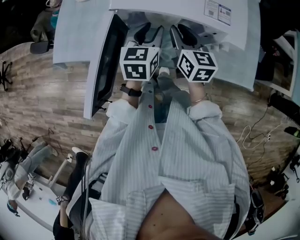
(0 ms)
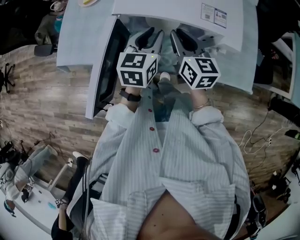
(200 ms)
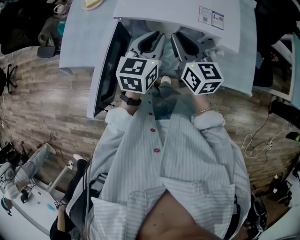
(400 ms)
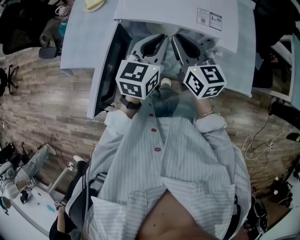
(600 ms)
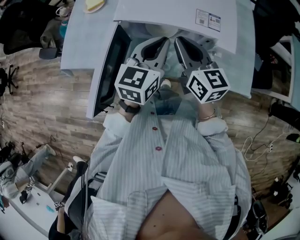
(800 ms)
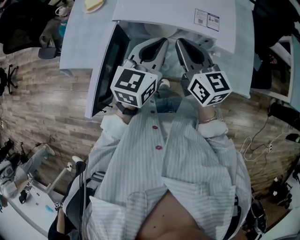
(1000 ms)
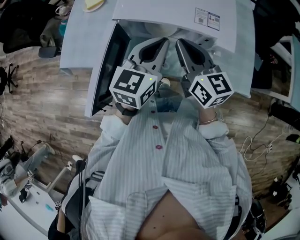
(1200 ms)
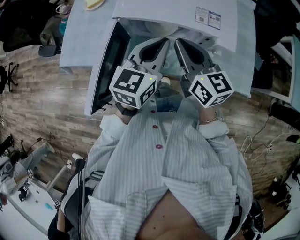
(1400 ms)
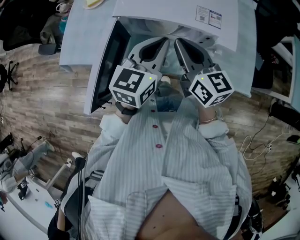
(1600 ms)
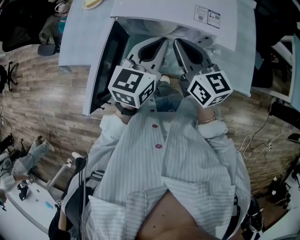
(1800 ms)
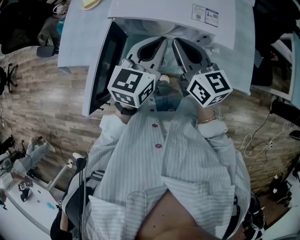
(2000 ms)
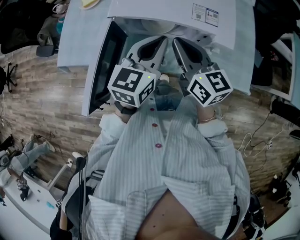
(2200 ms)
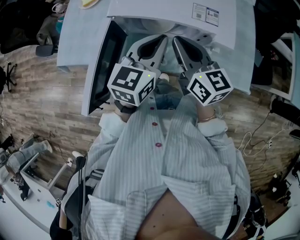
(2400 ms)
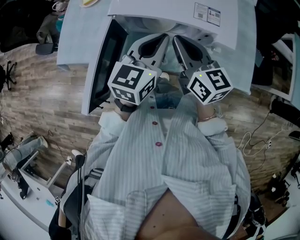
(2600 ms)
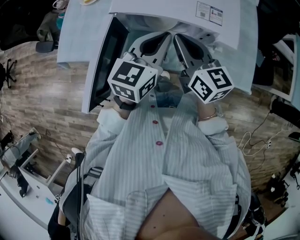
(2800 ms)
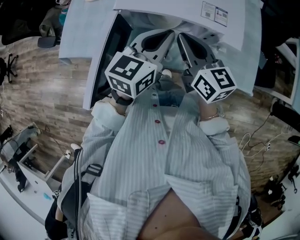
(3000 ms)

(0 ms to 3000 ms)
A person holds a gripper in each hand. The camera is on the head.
0 ms - 1600 ms: The two grippers go approximately 15 cm upward and backward. The left gripper closes.
1600 ms - 3000 ms: There are only small adjustments of the grippers.

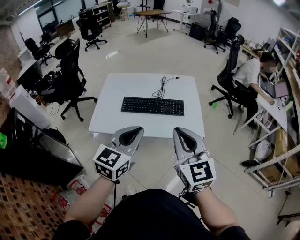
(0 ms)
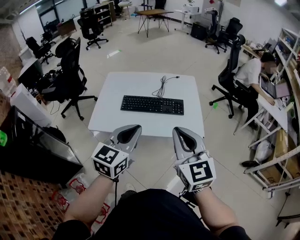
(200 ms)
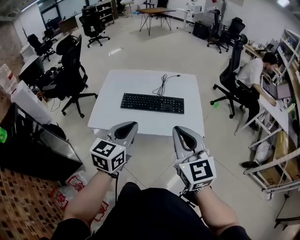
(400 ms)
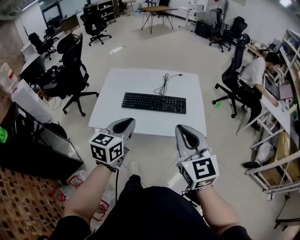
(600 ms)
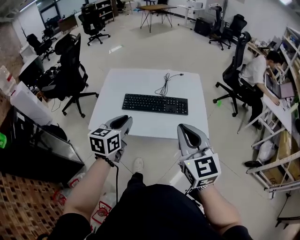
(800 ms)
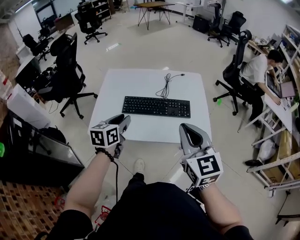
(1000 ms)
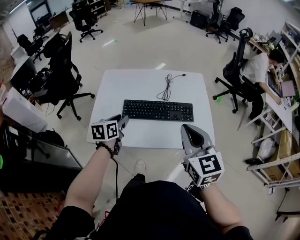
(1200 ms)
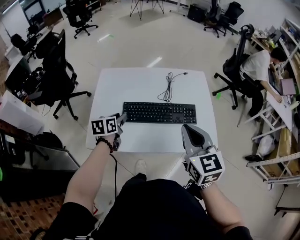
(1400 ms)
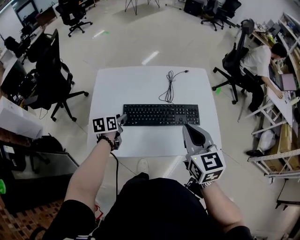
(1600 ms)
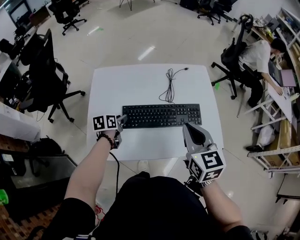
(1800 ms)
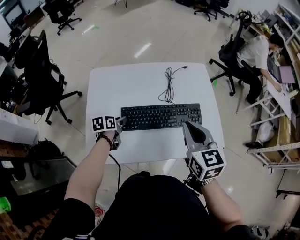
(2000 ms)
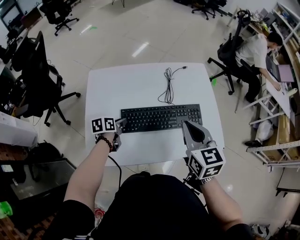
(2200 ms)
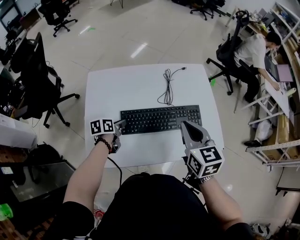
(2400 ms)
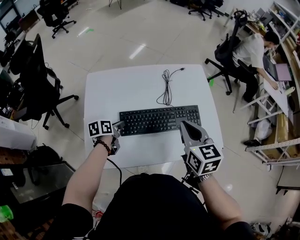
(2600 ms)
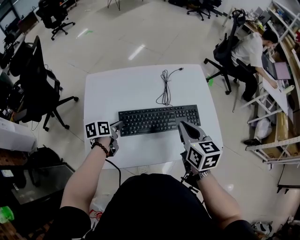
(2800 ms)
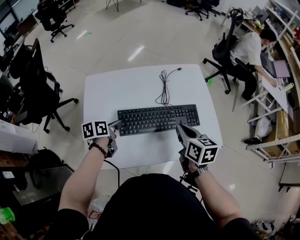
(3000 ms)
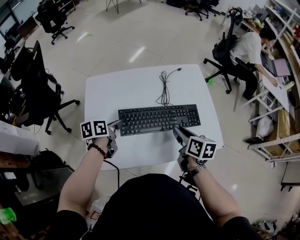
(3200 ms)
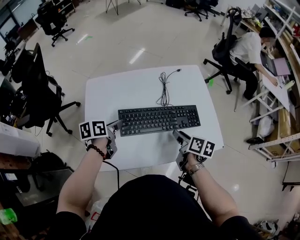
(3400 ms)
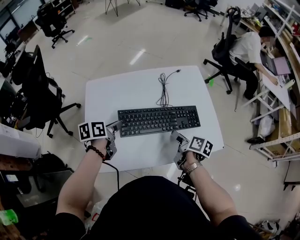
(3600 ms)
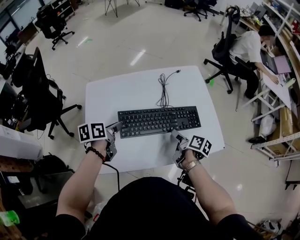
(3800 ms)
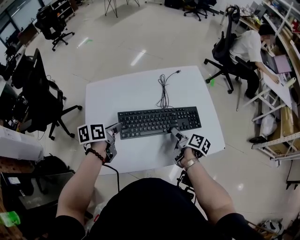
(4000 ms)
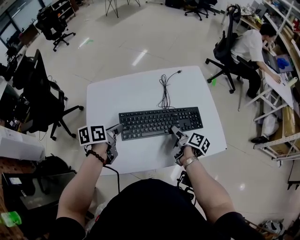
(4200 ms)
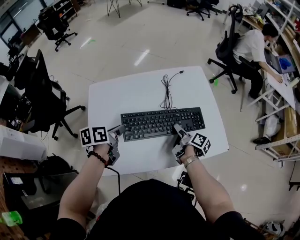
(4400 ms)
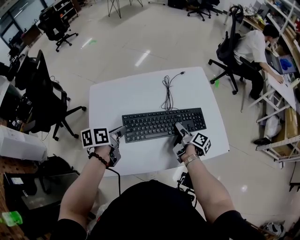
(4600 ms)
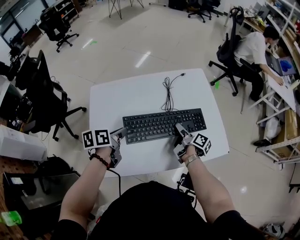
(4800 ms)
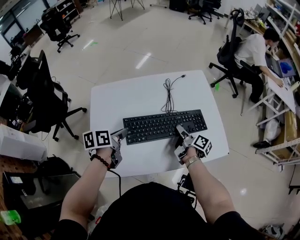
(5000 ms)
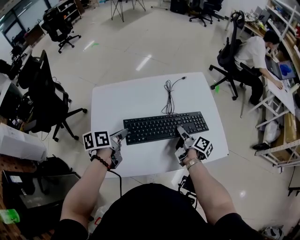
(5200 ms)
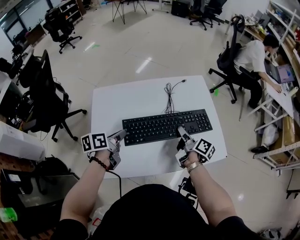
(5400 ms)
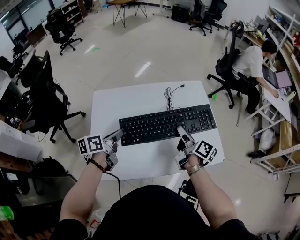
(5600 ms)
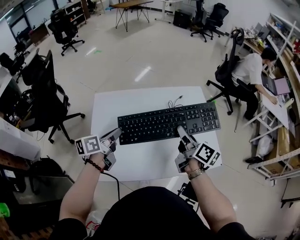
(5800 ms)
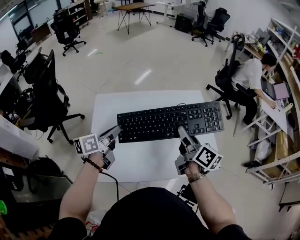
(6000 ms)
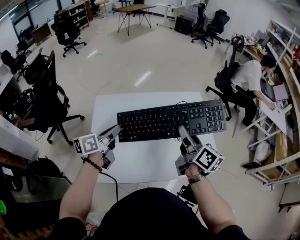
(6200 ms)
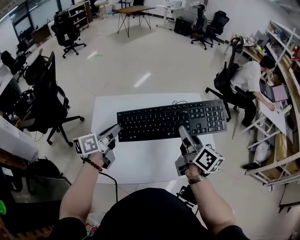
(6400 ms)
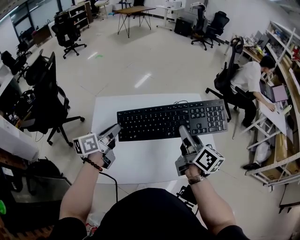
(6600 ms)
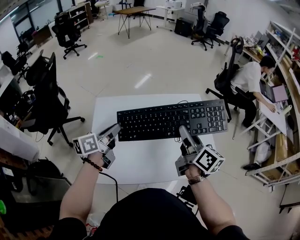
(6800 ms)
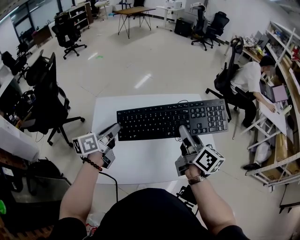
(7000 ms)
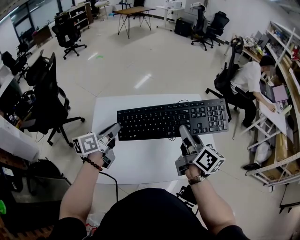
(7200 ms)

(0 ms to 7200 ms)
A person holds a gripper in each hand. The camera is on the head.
0 ms - 1400 ms: The left gripper moves forward, downward and to the left, about 40 cm, changes its angle by approximately 40 degrees, and opens up, while the right gripper heads forward and downward, covering about 20 cm.
1400 ms - 2800 ms: The right gripper is displaced forward and downward by some 15 cm, and changes its angle by some 20 degrees; the left gripper goes roughly 10 cm downward and forward, and swivels roughly 20 degrees.
2800 ms - 4400 ms: The left gripper travels upward by some 10 cm, while the right gripper is displaced downward by approximately 15 cm, twists roughly 60 degrees clockwise, seen from behind, and opens up.
4400 ms - 5800 ms: The right gripper moves upward, some 20 cm, turns by about 30 degrees, and closes; the left gripper moves upward, roughly 5 cm, and swivels some 20 degrees.
5800 ms - 7200 ms: The grippers both shift upward by approximately 5 cm.

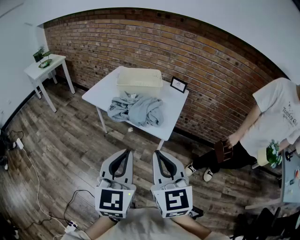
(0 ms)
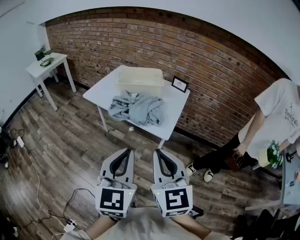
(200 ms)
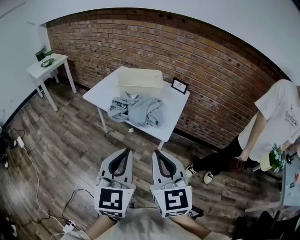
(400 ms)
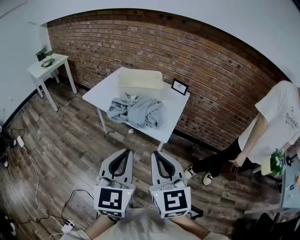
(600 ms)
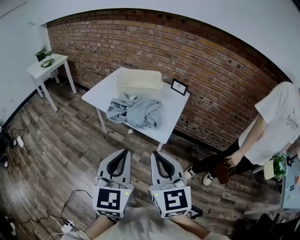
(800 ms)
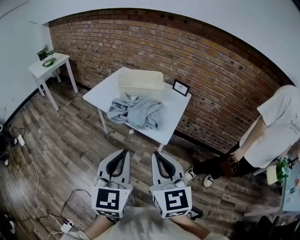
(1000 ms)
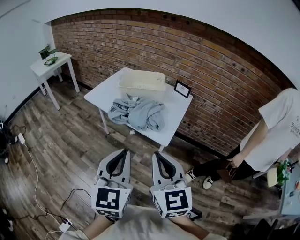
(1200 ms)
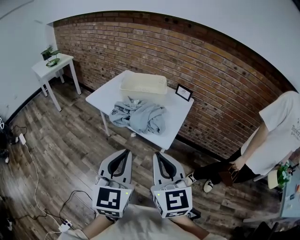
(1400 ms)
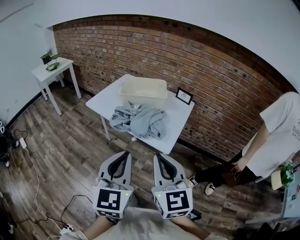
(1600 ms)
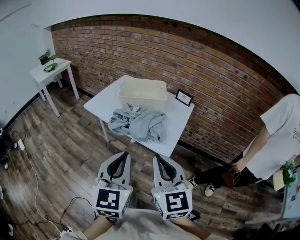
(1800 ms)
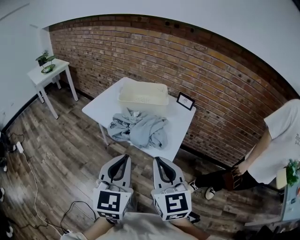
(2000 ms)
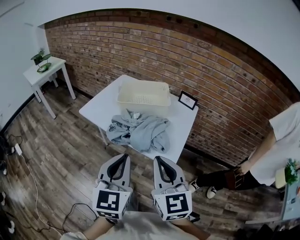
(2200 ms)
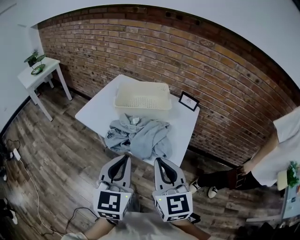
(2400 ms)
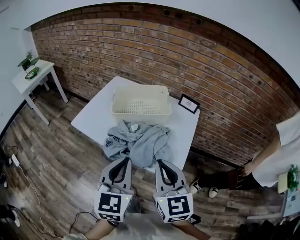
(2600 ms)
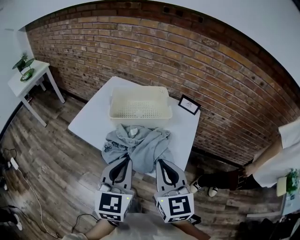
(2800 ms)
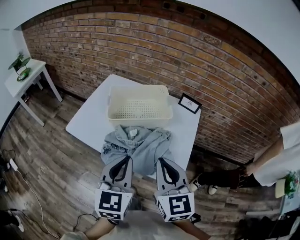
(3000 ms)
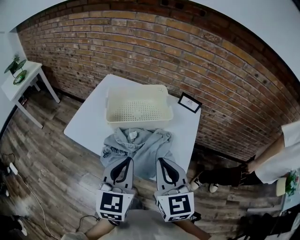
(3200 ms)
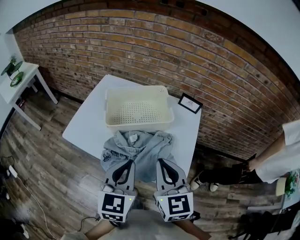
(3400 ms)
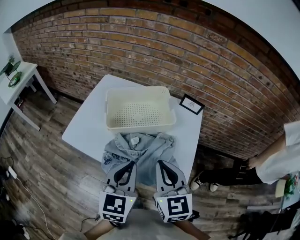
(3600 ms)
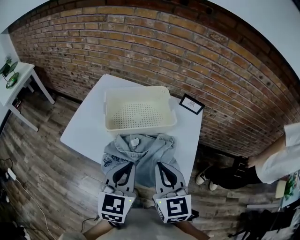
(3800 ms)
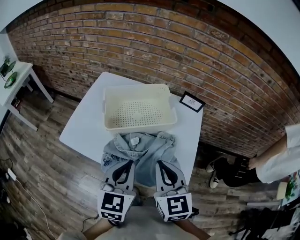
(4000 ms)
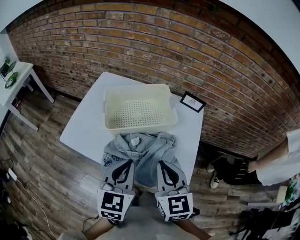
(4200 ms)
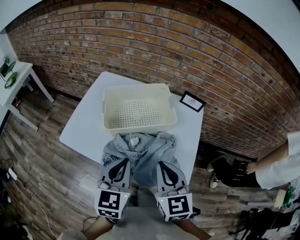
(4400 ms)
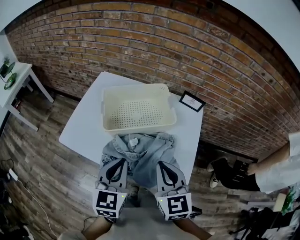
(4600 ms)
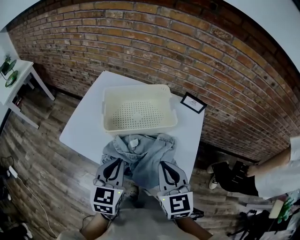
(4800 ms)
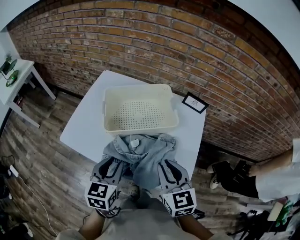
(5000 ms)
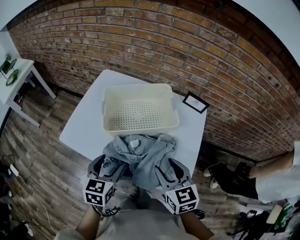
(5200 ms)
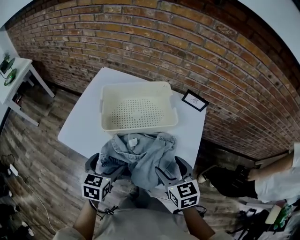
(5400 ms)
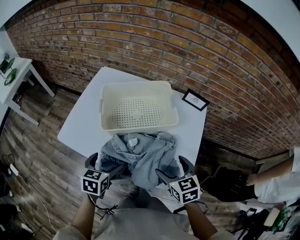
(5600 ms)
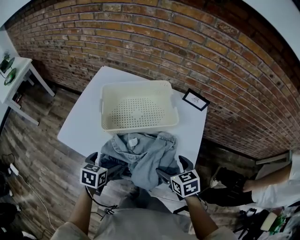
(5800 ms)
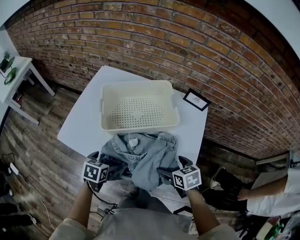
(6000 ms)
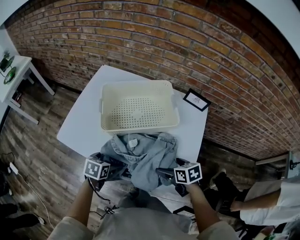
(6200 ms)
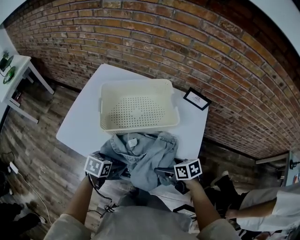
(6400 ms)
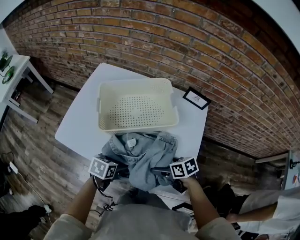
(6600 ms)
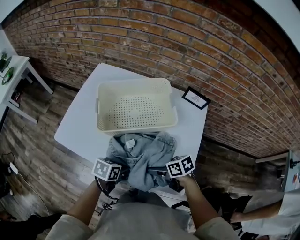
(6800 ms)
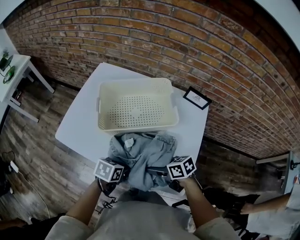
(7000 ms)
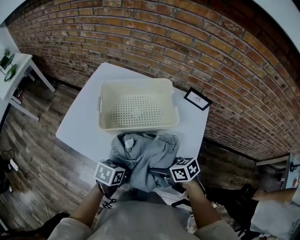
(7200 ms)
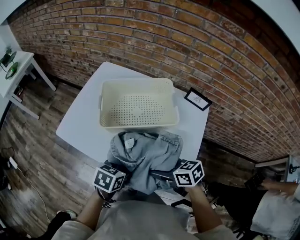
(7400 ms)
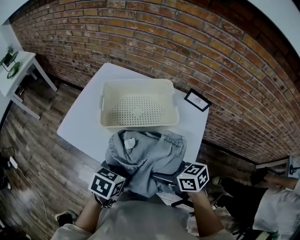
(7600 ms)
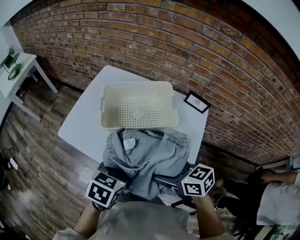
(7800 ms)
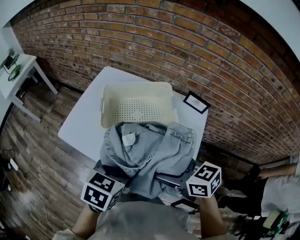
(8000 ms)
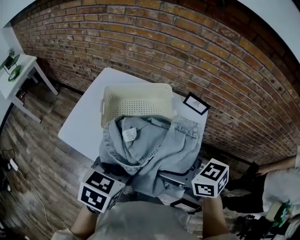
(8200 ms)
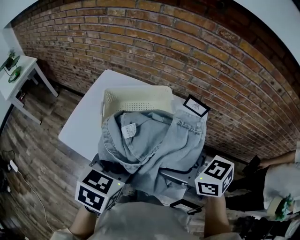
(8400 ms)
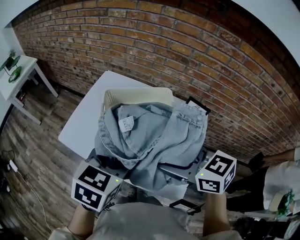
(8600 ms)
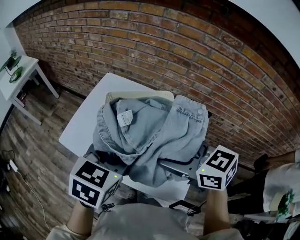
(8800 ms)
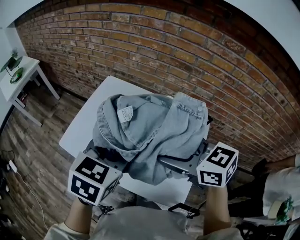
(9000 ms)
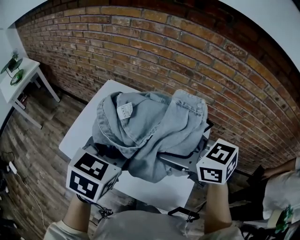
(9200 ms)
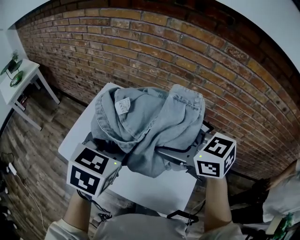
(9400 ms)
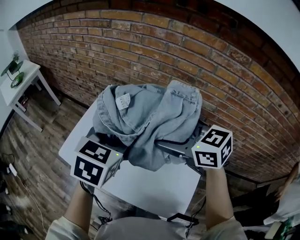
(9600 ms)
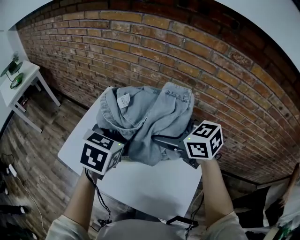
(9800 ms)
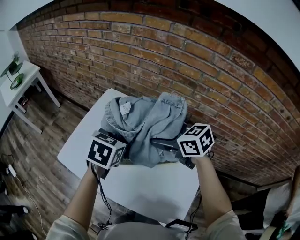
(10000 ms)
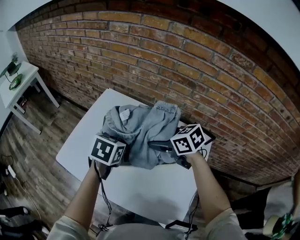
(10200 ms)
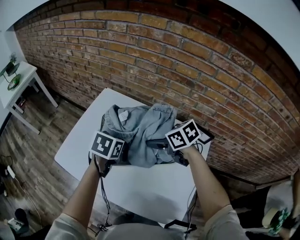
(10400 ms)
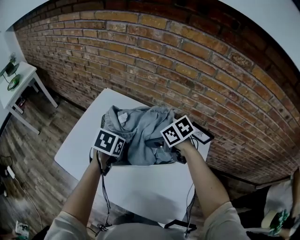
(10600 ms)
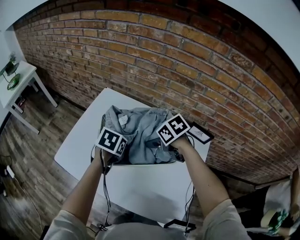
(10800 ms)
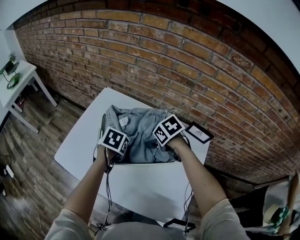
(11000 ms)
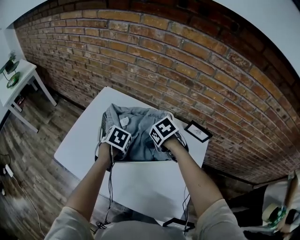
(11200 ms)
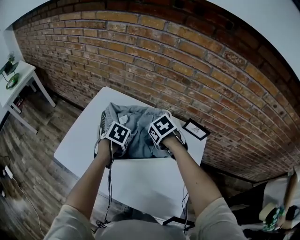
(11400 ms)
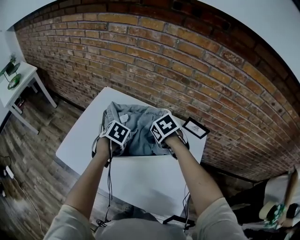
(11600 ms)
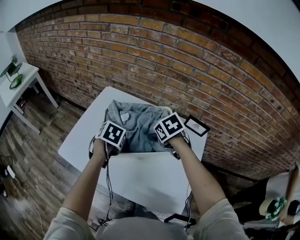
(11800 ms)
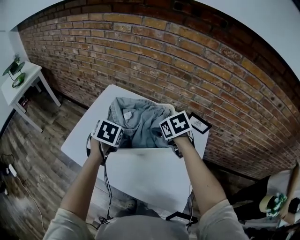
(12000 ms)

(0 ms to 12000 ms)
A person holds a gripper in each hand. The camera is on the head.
0 ms - 1600 ms: The right gripper shifts about 5 cm forward.
1600 ms - 3000 ms: The grippers both shift forward by approximately 30 cm.
3000 ms - 4400 ms: The two grippers go some 10 cm forward and downward.
4400 ms - 6000 ms: The two grippers go approximately 20 cm downward. The left gripper tips its fingers downward by approximately 30 degrees, and opens its fingers, while the right gripper tips its fingers downward by about 30 degrees, and opens its fingers.
6000 ms - 7600 ms: The right gripper moves upward, some 10 cm, and swivels roughly 30 degrees; the left gripper shifts by approximately 15 cm, and closes up.
7600 ms - 9000 ms: The two grippers go some 20 cm upward and forward. The left gripper rotates approximately 20 degrees. The right gripper turns by roughly 20 degrees.
9000 ms - 10400 ms: The right gripper shifts about 25 cm forward and downward, and swivels approximately 20 degrees. Meanwhile the left gripper is displaced downward and forward by about 20 cm, and rotates some 20 degrees.
10400 ms - 12000 ms: The left gripper moves to the left, some 5 cm, and travels downward and back again, about 5 cm each way. Meanwhile the right gripper travels downward and back again, roughly 5 cm each way, and turns by approximately 20 degrees.

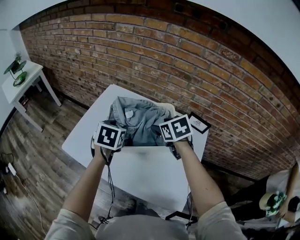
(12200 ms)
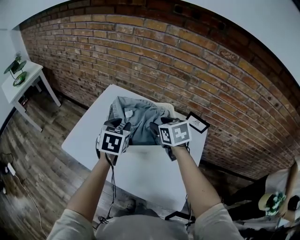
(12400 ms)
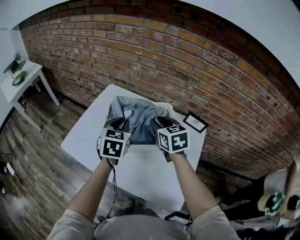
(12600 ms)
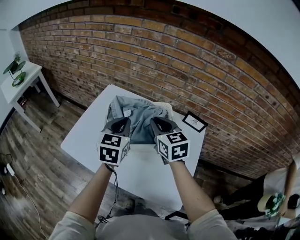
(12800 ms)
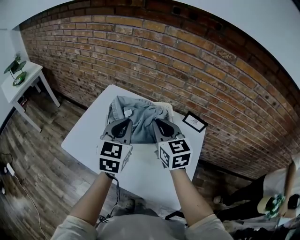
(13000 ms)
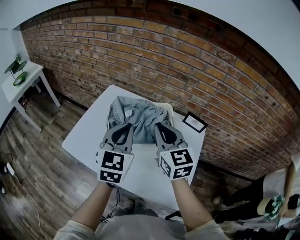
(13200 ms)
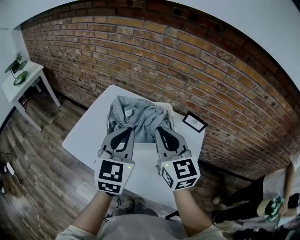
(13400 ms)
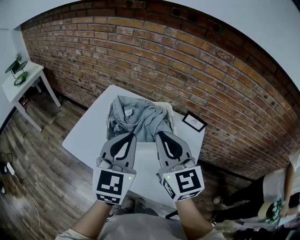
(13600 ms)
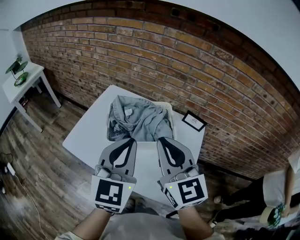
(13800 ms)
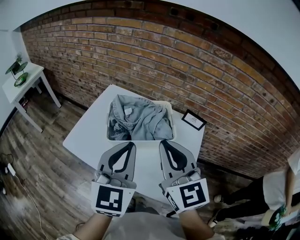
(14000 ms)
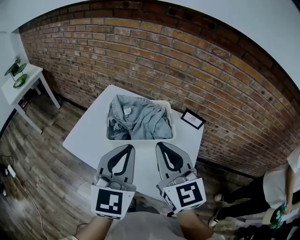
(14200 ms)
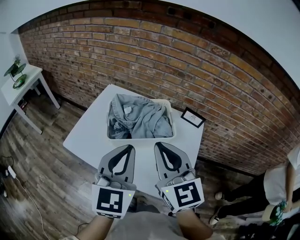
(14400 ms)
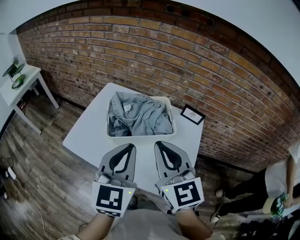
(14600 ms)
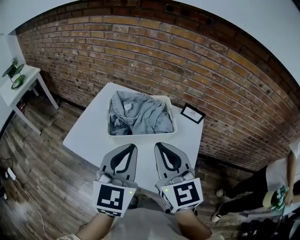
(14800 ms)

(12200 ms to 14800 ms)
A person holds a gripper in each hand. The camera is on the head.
12200 ms - 13400 ms: The grippers both shift upward and backward by roughly 20 cm. The right gripper points its fingers approximately 40 degrees further upward, and closes; the left gripper tilts its fingers about 40 degrees upward, and closes.
13400 ms - 14800 ms: The grippers both shift backward by roughly 10 cm.
